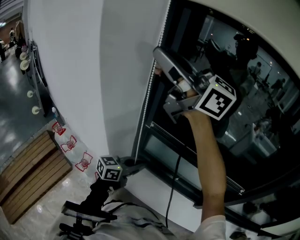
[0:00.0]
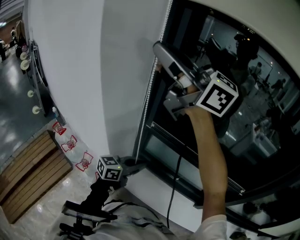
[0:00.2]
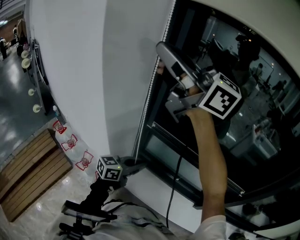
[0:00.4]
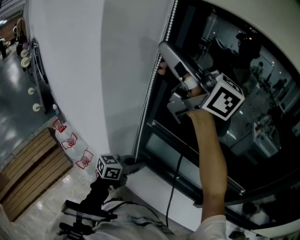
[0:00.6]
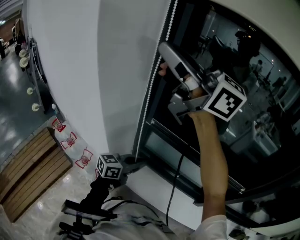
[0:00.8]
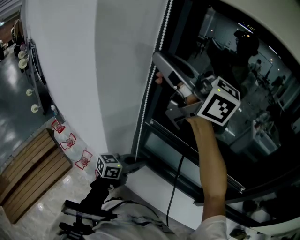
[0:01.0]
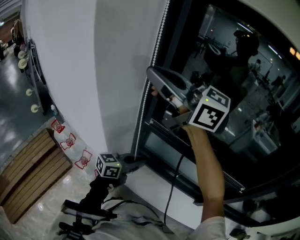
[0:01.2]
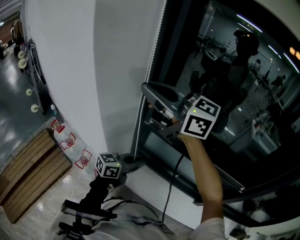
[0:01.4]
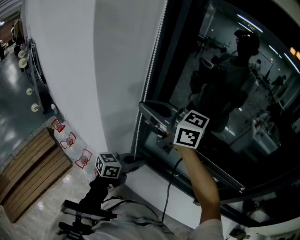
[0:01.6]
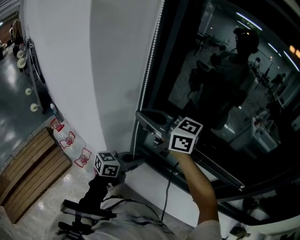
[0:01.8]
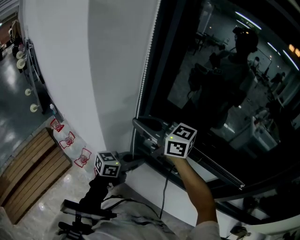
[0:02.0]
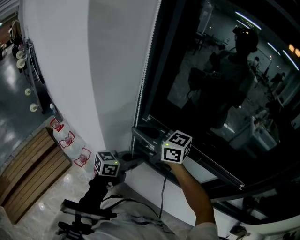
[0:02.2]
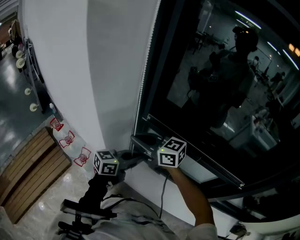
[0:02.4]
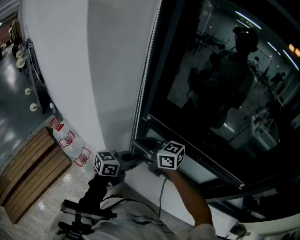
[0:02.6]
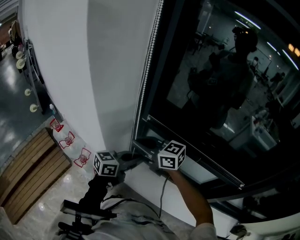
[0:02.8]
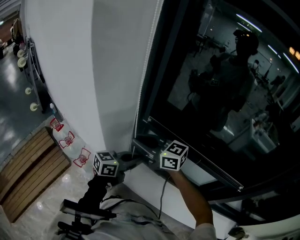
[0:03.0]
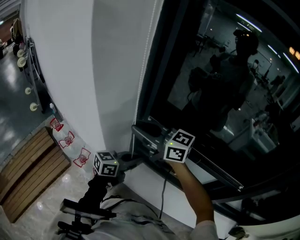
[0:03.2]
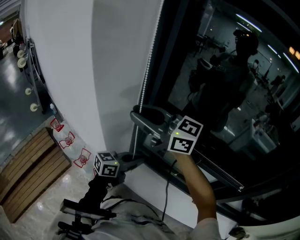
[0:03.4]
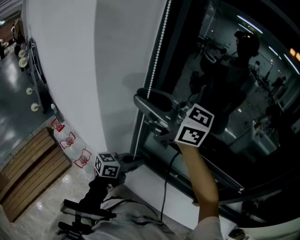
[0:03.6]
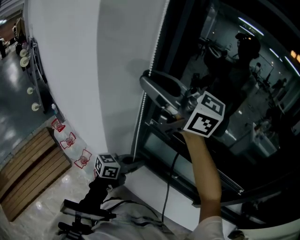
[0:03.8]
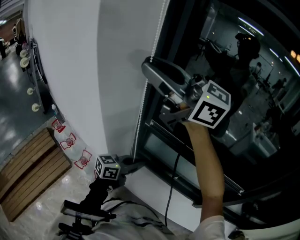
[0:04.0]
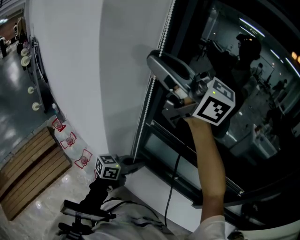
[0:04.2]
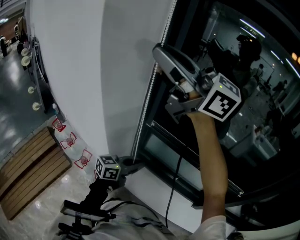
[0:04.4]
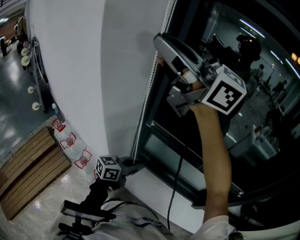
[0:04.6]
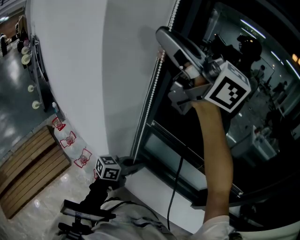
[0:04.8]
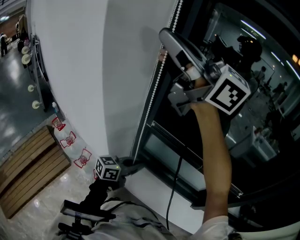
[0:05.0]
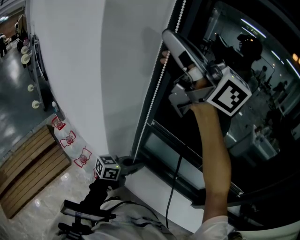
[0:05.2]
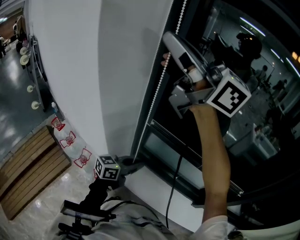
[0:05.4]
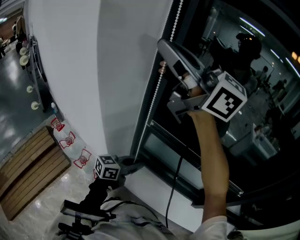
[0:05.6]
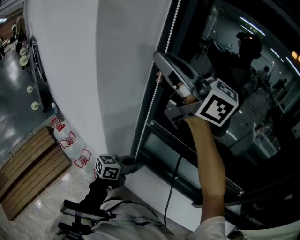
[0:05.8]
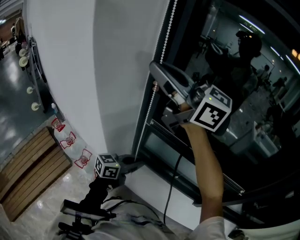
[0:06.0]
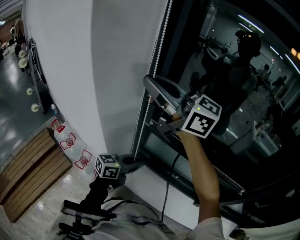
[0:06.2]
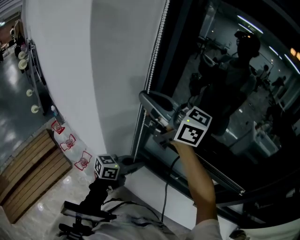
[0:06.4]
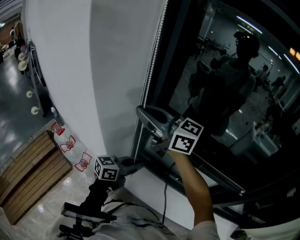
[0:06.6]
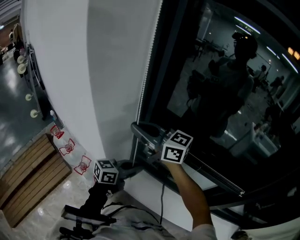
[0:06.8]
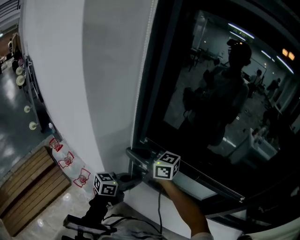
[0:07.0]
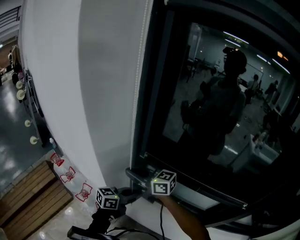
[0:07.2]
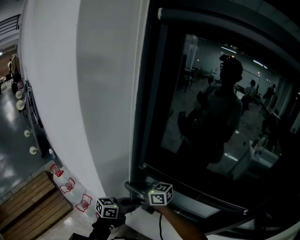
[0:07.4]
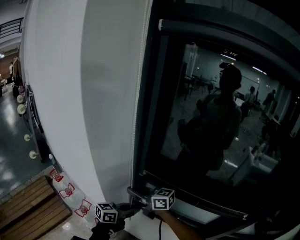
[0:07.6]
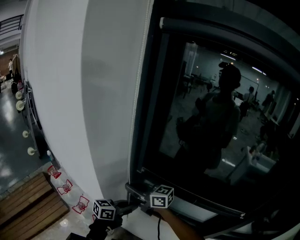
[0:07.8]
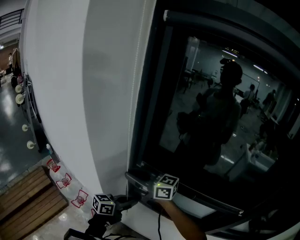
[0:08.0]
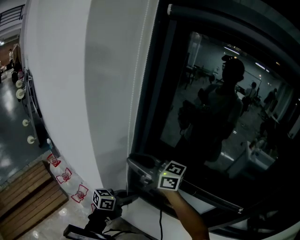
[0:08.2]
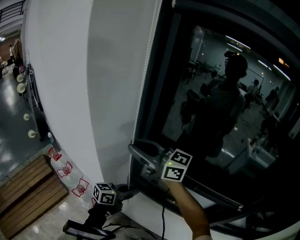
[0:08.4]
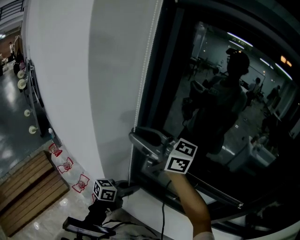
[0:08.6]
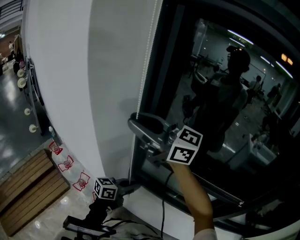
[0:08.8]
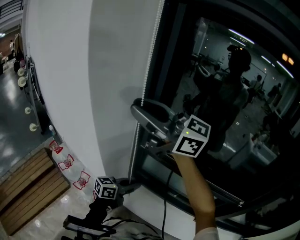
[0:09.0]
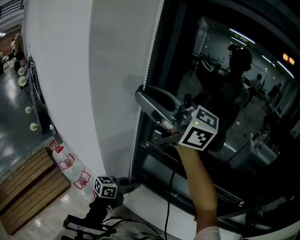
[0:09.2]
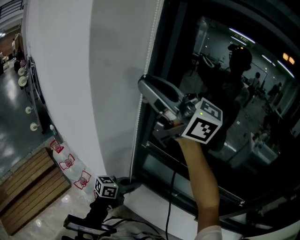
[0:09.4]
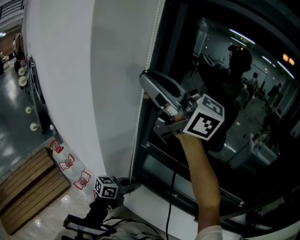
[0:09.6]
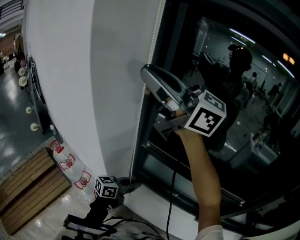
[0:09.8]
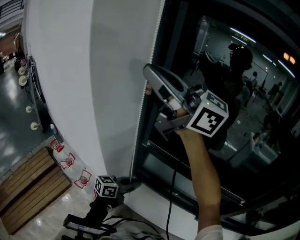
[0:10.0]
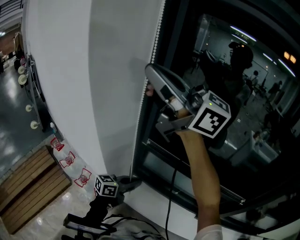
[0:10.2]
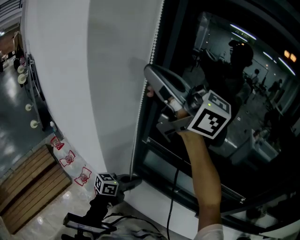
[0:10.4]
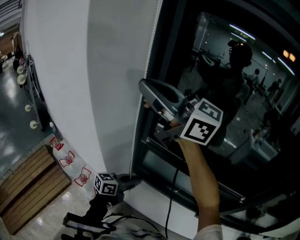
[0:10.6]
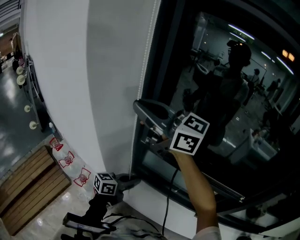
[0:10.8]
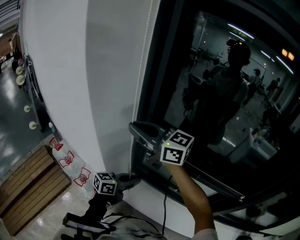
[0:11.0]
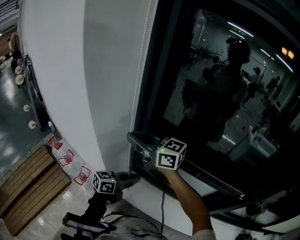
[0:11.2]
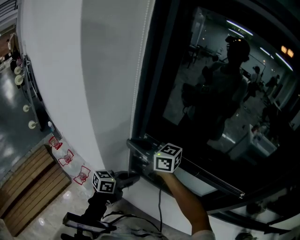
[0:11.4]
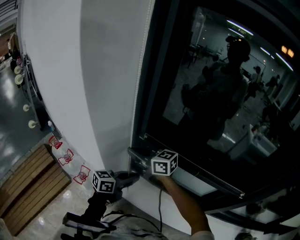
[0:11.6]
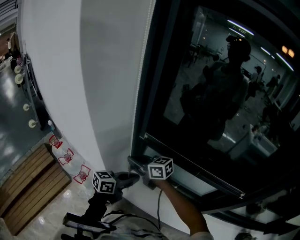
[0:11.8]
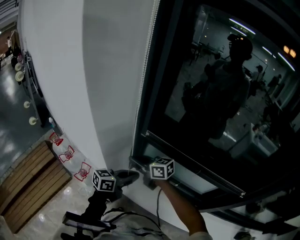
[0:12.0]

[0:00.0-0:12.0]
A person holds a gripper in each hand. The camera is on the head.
0:00.0 to 0:01.6: The right gripper shifts approximately 20 cm downward.
0:01.6 to 0:03.0: The right gripper travels downward by some 15 cm.
0:03.0 to 0:04.4: The right gripper heads upward, covering roughly 35 cm, and rotates approximately 30 degrees.
0:04.4 to 0:06.0: The grippers make only small movements.
0:06.0 to 0:07.6: The right gripper shifts roughly 35 cm downward, and turns by some 30 degrees.
0:07.6 to 0:09.0: The right gripper heads upward, covering some 30 cm, and turns by roughly 30 degrees.
0:09.0 to 0:10.4: The right gripper shifts roughly 10 cm upward.
0:10.4 to 0:12.0: The right gripper moves downward, about 50 cm, and tilts its fingers roughly 30 degrees downward.

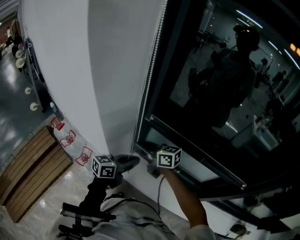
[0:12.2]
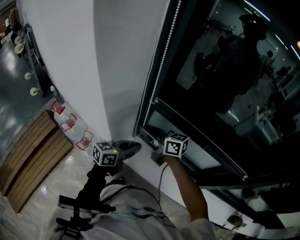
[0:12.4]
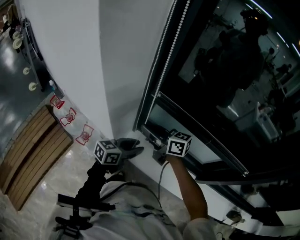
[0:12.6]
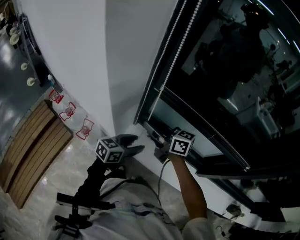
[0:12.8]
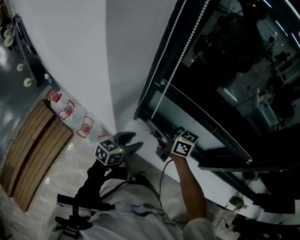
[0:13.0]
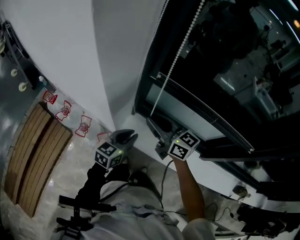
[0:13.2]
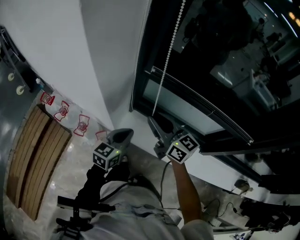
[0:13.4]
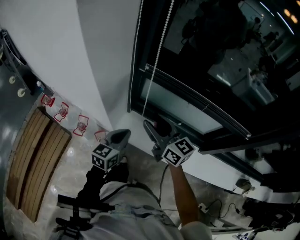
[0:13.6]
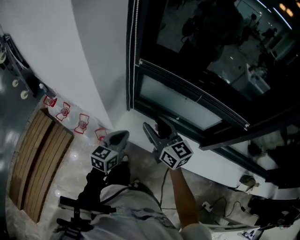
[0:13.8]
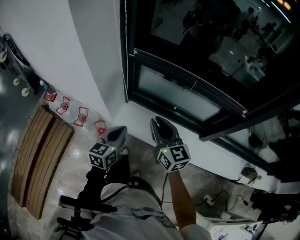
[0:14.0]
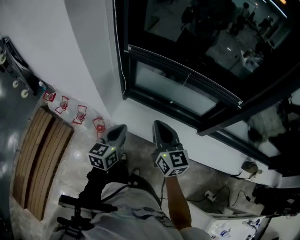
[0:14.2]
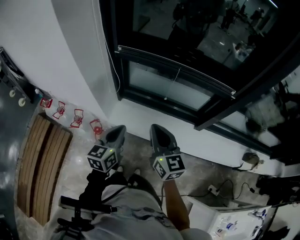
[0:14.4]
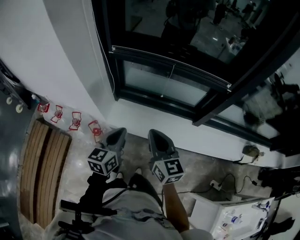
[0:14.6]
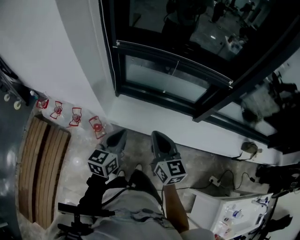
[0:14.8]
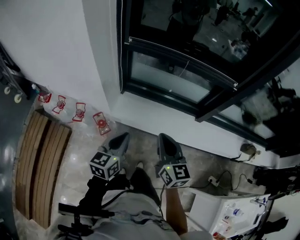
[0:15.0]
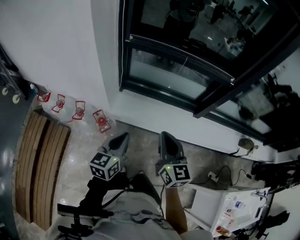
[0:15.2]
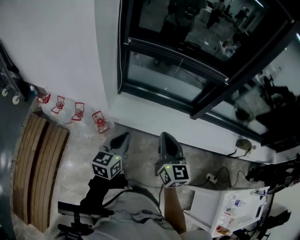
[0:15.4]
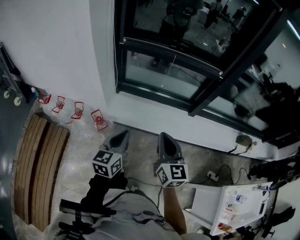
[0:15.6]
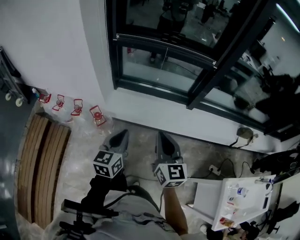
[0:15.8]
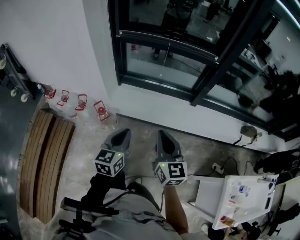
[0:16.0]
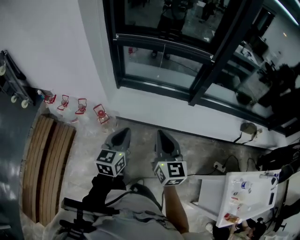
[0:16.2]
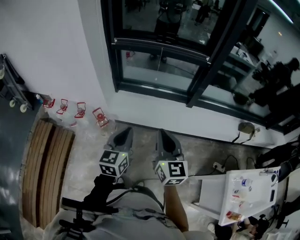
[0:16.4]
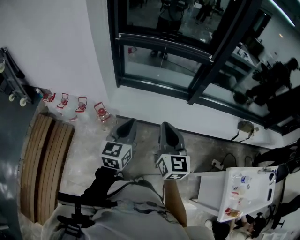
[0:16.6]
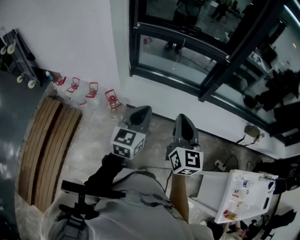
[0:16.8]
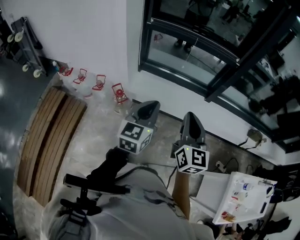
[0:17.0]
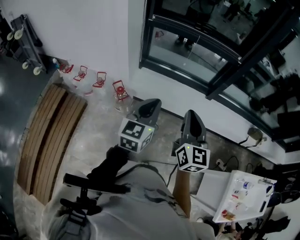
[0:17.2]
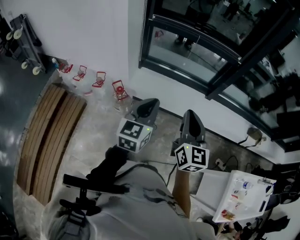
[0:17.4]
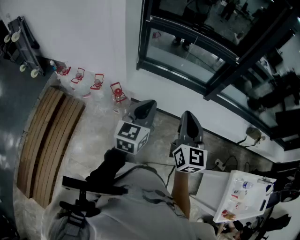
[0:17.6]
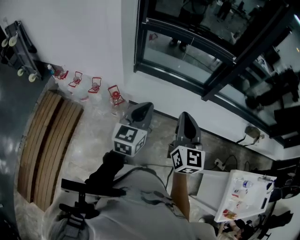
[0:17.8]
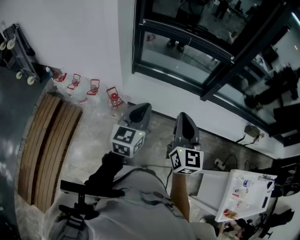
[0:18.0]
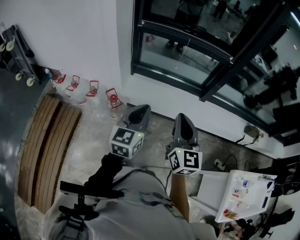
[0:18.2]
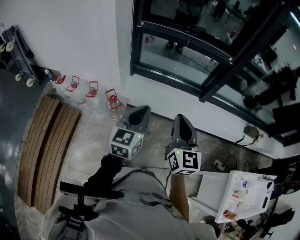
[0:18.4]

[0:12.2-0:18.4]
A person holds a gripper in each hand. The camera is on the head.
0:12.2 to 0:13.8: The left gripper goes approximately 10 cm backward, turns by approximately 30 degrees, and opens, then closes again; the right gripper heads backward and to the right, covering about 20 cm, changes its angle by roughly 40 degrees, and opens up.
0:13.8 to 0:15.4: The grippers both shift backward by some 25 cm. The right gripper turns by some 40 degrees, and closes its fingers.
0:15.4 to 0:16.8: The left gripper moves backward, upward and to the right, some 15 cm, while the right gripper travels backward and to the right by about 15 cm.
0:16.8 to 0:18.4: The grippers stay close to where they were, moving slightly.

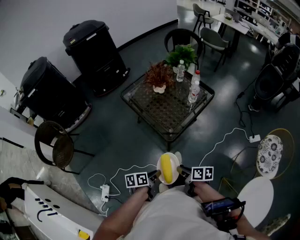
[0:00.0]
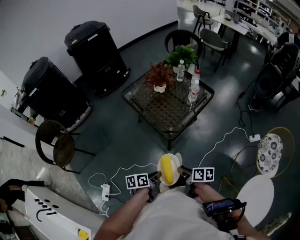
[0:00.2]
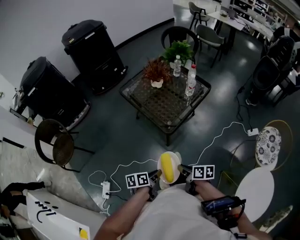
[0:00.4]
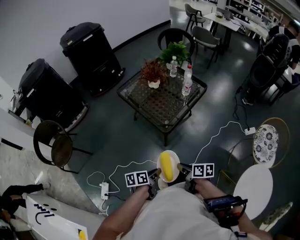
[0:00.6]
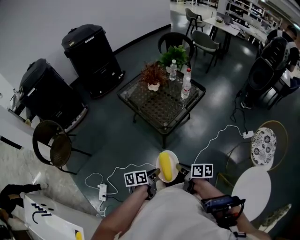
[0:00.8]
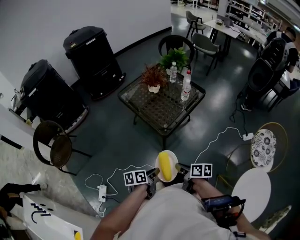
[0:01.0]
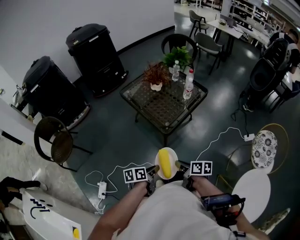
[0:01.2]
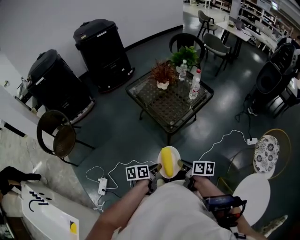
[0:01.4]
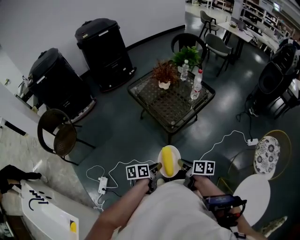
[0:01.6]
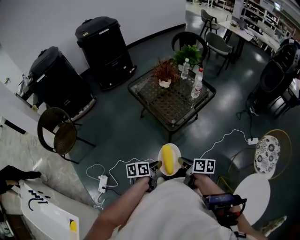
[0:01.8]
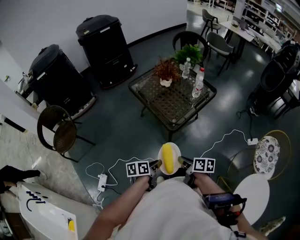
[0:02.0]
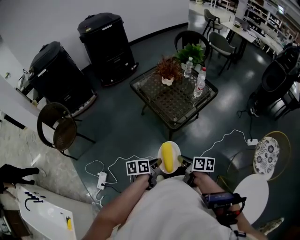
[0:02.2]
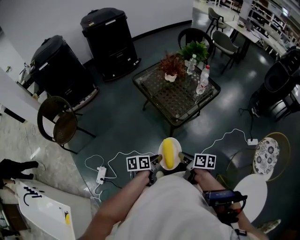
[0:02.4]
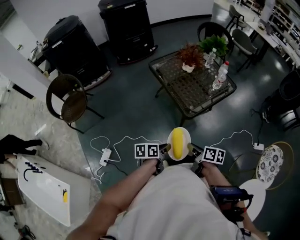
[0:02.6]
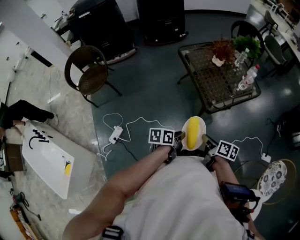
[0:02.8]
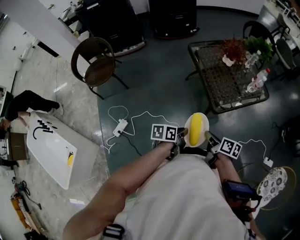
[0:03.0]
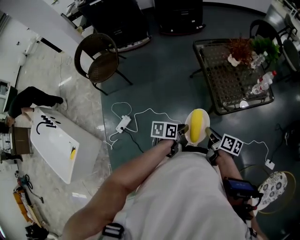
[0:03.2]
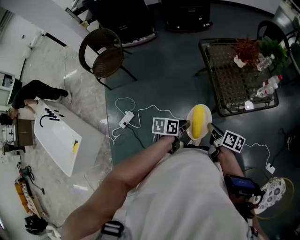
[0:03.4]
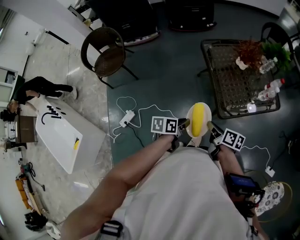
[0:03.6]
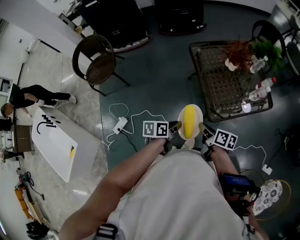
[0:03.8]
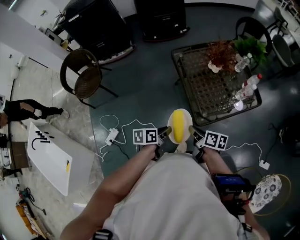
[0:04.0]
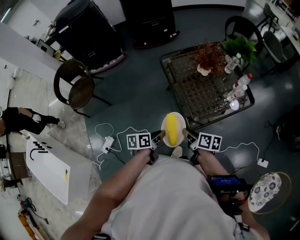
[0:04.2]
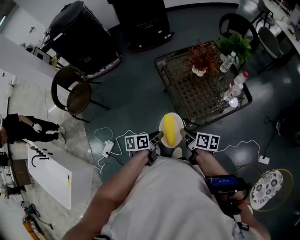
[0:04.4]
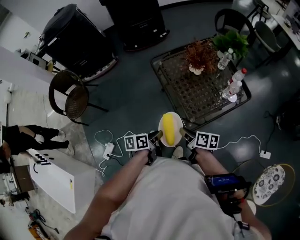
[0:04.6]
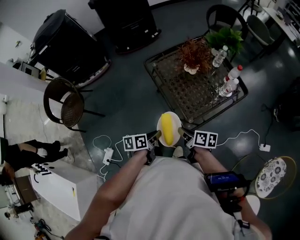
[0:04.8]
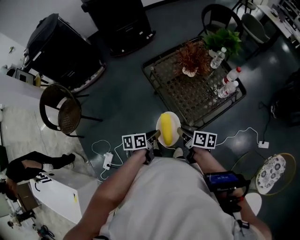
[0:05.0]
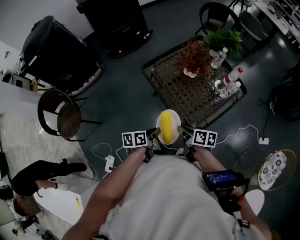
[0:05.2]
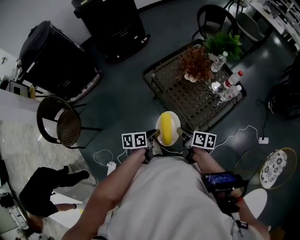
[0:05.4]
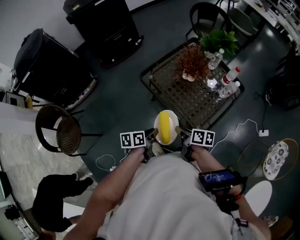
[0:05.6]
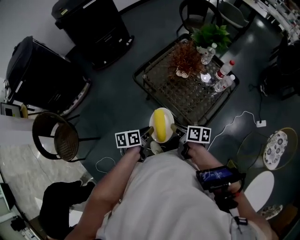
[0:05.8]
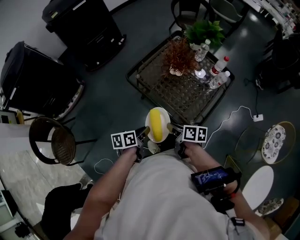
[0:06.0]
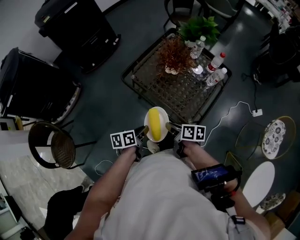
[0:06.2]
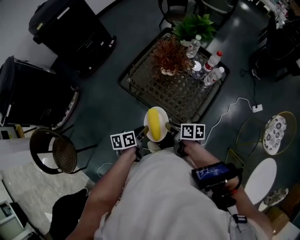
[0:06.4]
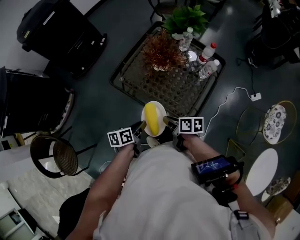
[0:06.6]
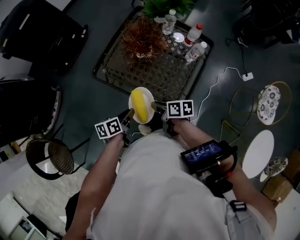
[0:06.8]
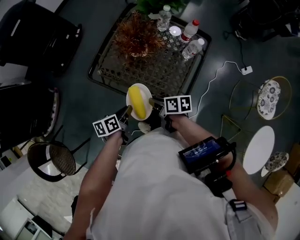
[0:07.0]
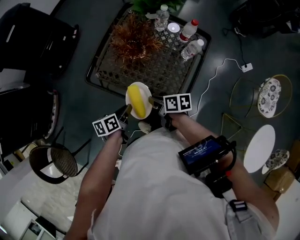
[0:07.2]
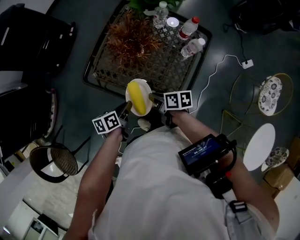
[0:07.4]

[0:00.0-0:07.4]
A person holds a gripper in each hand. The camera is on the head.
0:00.0 to 0:01.4: Both grippers travel together backward, roughly 5 cm.
0:01.4 to 0:03.0: The left gripper moves to the left, some 5 cm. The right gripper is displaced to the left and forward by some 10 cm.
0:03.0 to 0:04.4: Both grippers move forward, some 15 cm.
0:04.4 to 0:06.0: The grippers both shift forward and to the left by about 20 cm. The right gripper swivels roughly 20 degrees. The left gripper changes its angle by about 20 degrees.
0:06.0 to 0:07.4: Both grippers move forward, to the right and downward, about 15 cm.
